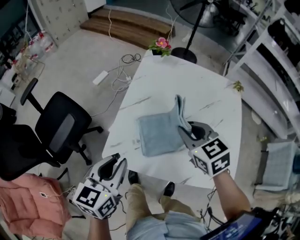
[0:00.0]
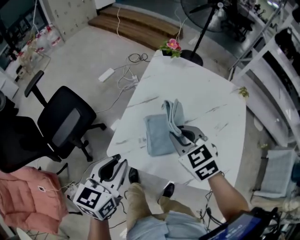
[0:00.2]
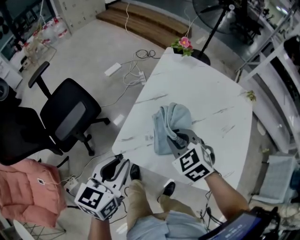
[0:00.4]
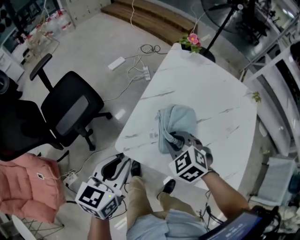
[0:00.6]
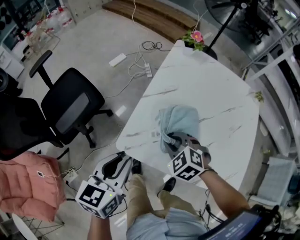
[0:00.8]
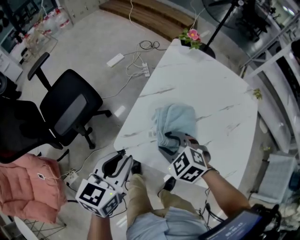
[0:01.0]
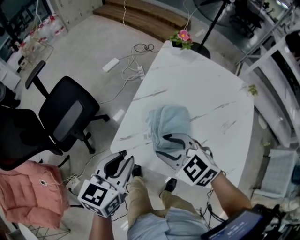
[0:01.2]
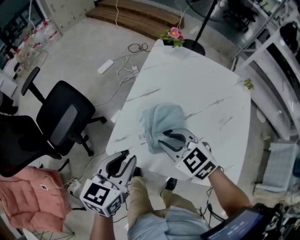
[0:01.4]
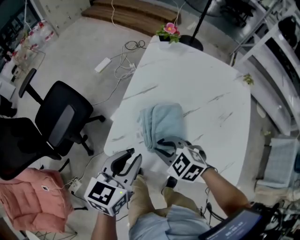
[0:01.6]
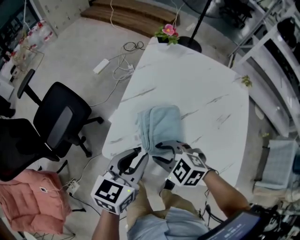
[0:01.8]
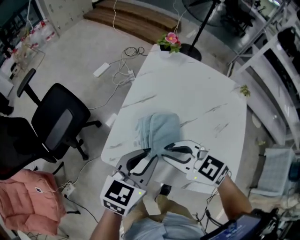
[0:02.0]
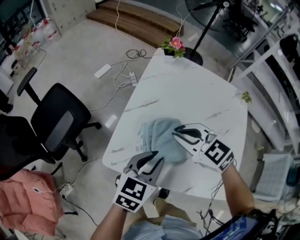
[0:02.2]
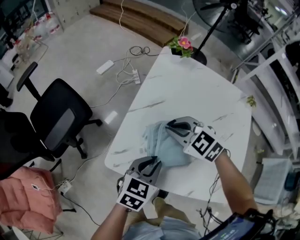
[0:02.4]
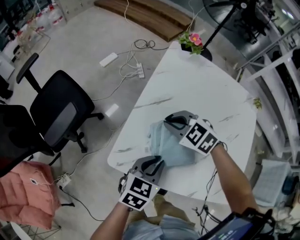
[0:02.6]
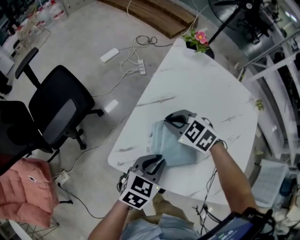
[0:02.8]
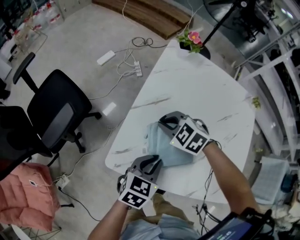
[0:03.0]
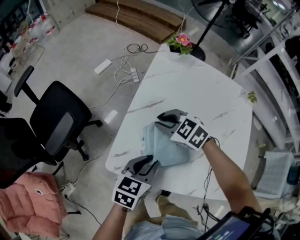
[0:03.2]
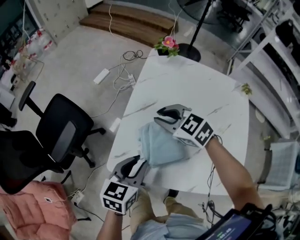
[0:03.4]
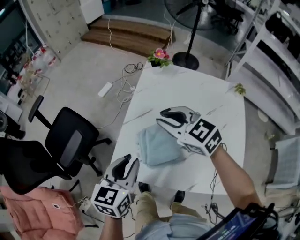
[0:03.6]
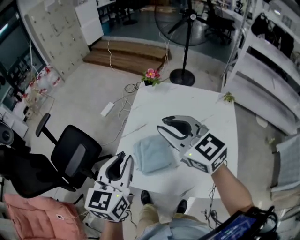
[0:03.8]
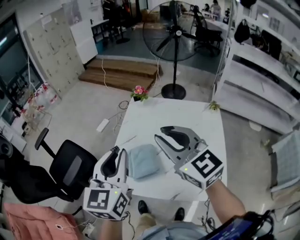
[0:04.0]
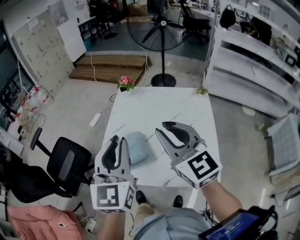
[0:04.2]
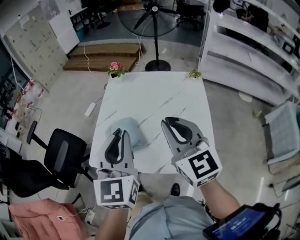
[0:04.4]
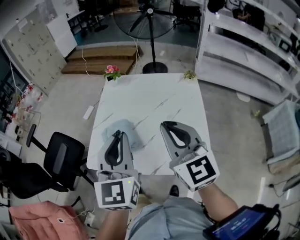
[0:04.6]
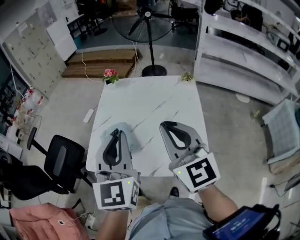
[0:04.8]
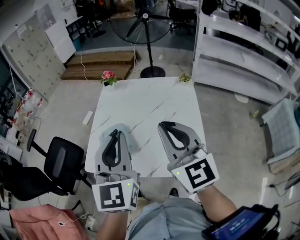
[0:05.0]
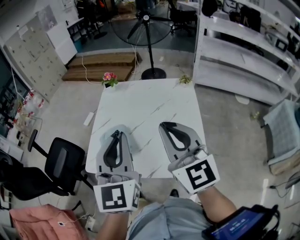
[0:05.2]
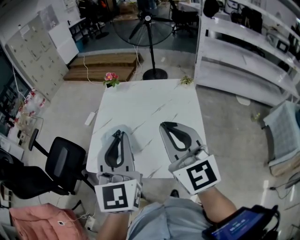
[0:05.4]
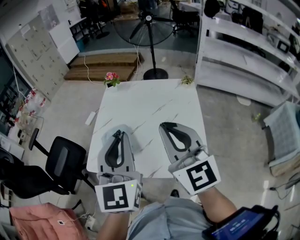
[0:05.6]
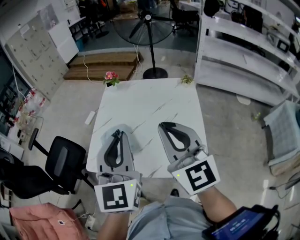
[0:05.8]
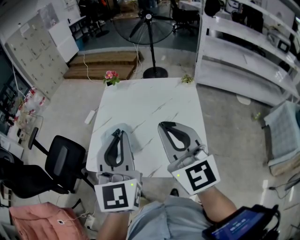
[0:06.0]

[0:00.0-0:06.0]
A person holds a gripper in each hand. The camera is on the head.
0:00.0 to 0:01.6: The left gripper moves about 5 cm to the left and comes back. Meanwhile the right gripper is displaced downward, to the left and backward by approximately 20 cm, swivels about 30 degrees, and opens, then closes again.
0:01.6 to 0:03.0: The left gripper heads downward and to the right, covering some 15 cm. Meanwhile the right gripper moves forward, approximately 15 cm.
0:03.0 to 0:04.4: The right gripper moves upward, to the right and backward, some 40 cm, and points its fingers approximately 50 degrees further upward. Meanwhile the left gripper goes approximately 30 cm upward, and tips its fingers upward by about 30 degrees.
0:04.4 to 0:06.0: The right gripper shifts by some 5 cm. The left gripper changes place by approximately 5 cm.

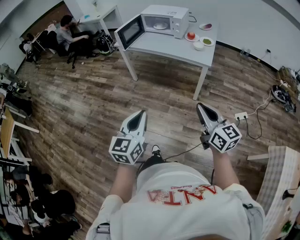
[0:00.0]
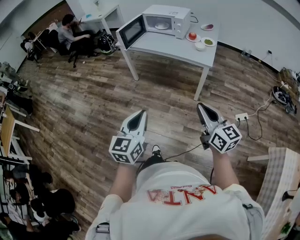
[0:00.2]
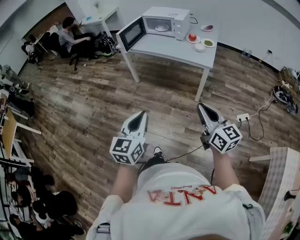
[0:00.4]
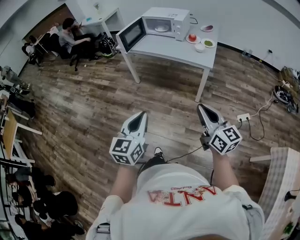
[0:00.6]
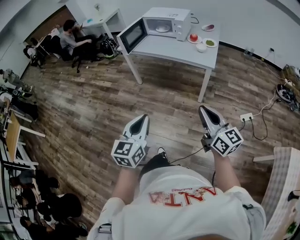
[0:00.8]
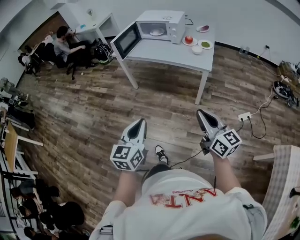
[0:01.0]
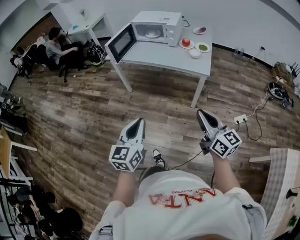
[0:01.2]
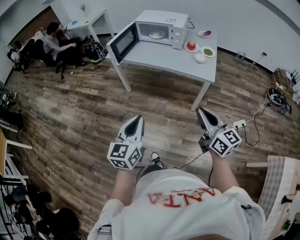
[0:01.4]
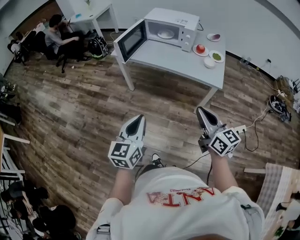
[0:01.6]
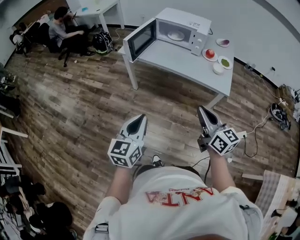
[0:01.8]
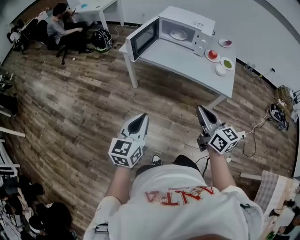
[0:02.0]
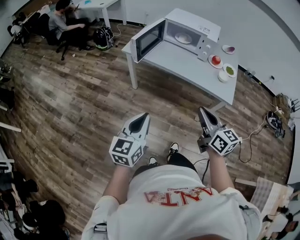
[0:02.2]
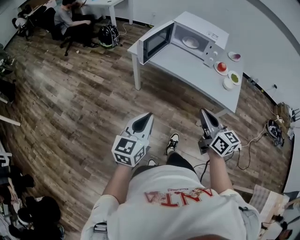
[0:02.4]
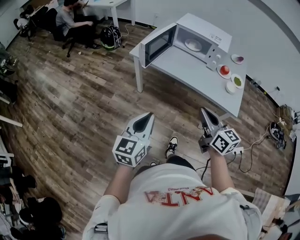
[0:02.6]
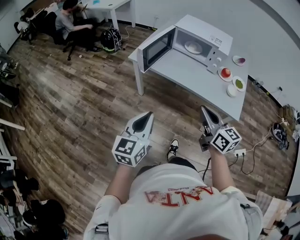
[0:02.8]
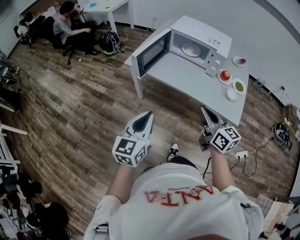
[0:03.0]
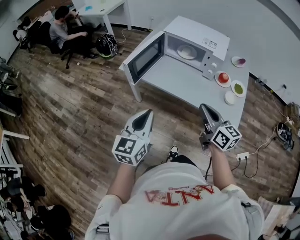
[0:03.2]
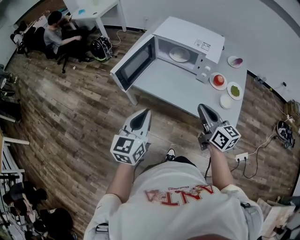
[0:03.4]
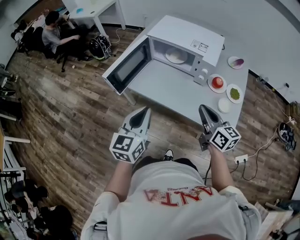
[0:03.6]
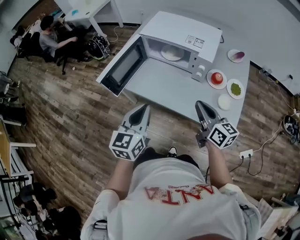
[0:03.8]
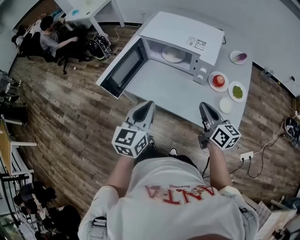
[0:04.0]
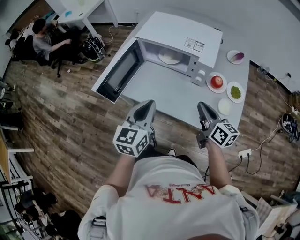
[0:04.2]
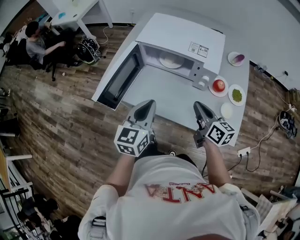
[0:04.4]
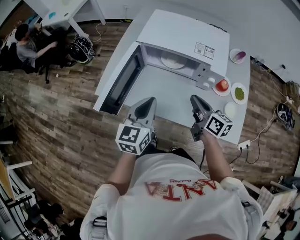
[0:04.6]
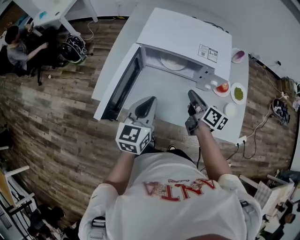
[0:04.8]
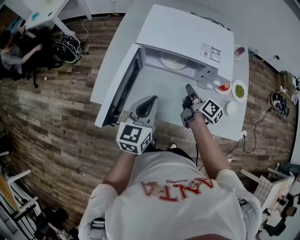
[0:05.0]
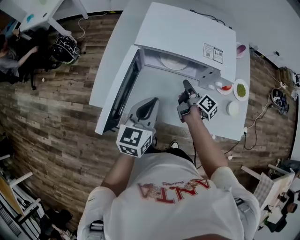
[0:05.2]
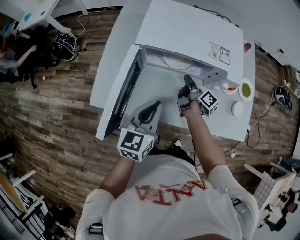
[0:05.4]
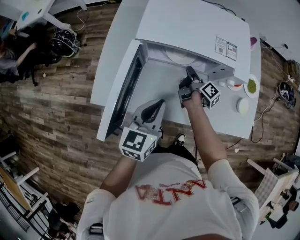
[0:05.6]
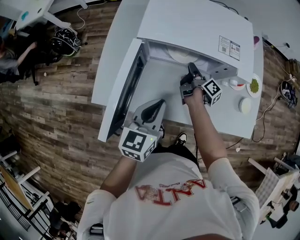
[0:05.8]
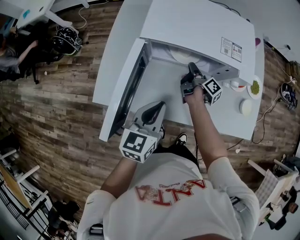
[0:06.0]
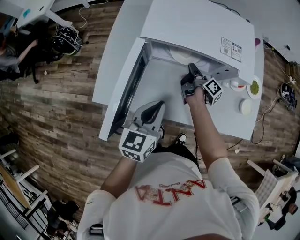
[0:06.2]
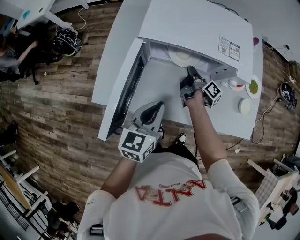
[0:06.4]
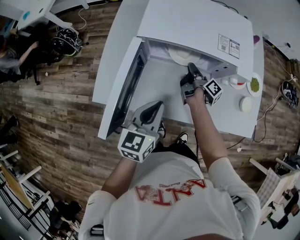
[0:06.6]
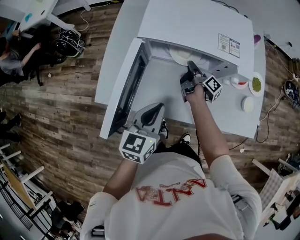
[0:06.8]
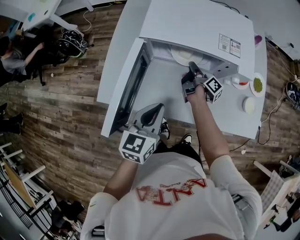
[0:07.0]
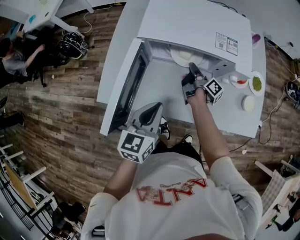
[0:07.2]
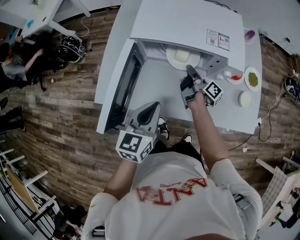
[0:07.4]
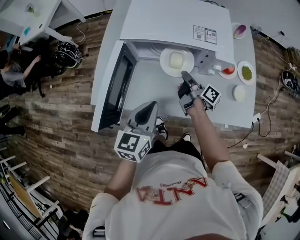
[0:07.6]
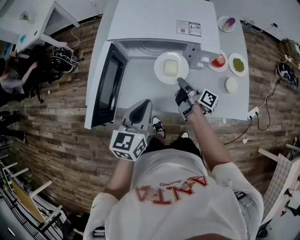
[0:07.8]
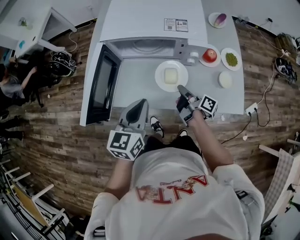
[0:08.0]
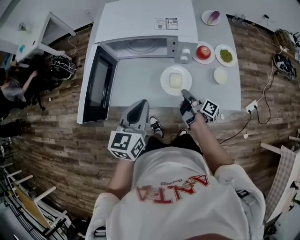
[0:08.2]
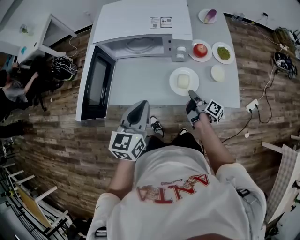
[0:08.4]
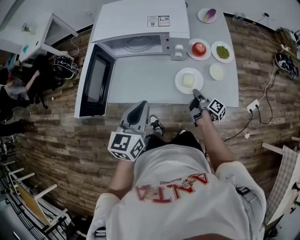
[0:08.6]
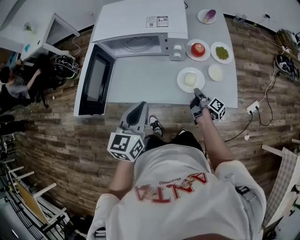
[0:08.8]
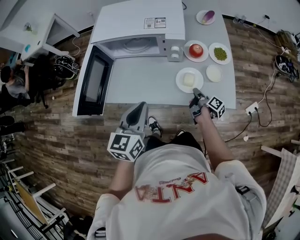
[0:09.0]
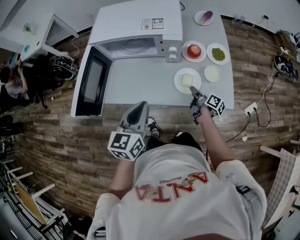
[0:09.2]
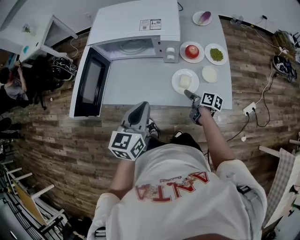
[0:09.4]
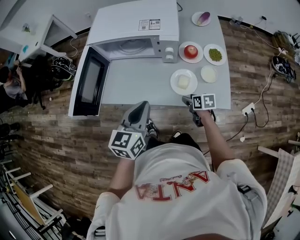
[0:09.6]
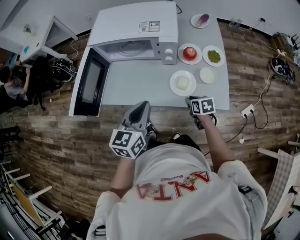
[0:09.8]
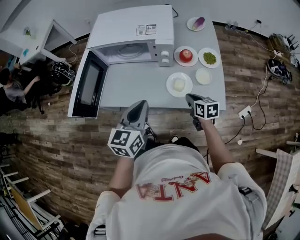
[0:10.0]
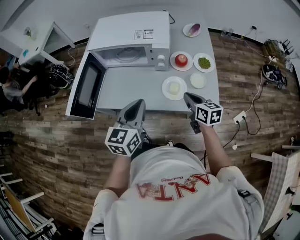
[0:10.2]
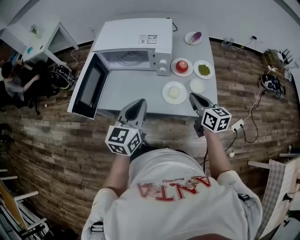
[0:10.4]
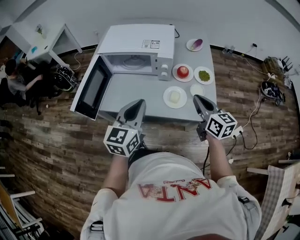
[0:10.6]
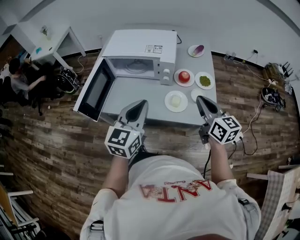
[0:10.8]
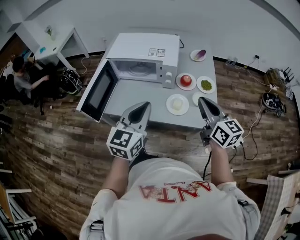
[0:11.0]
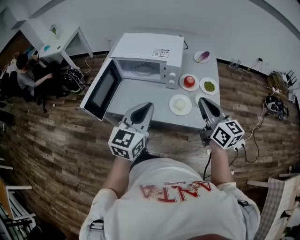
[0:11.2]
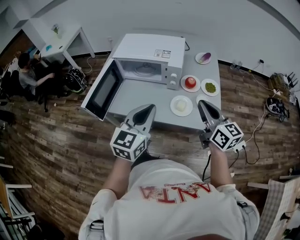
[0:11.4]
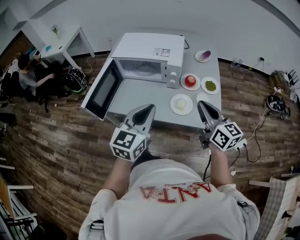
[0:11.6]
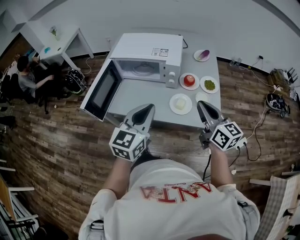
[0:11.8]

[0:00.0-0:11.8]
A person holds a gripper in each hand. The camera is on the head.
0:00.0 to 0:01.4: The two grippers go some 15 cm forward.
0:01.4 to 0:03.0: The two grippers go roughly 30 cm forward.
0:03.0 to 0:04.4: The two grippers go about 30 cm forward and to the right.
0:04.4 to 0:06.0: The left gripper shifts some 15 cm forward, downward and to the left. The right gripper goes some 30 cm forward, downward and to the left, and twists approximately 50 degrees clockwise, seen from behind.
0:06.0 to 0:07.4: The right gripper changes place by some 5 cm.
0:07.4 to 0:08.8: The right gripper shifts roughly 30 cm to the right and backward, while the left gripper is displaced to the right and backward by approximately 15 cm.
0:08.8 to 0:10.4: The right gripper shifts about 25 cm upward, rolls counterclockwise, seen from behind, by roughly 70 degrees, and opens, then closes again. Meanwhile the left gripper travels to the right by about 5 cm.
0:10.4 to 0:11.8: The right gripper shifts about 15 cm upward and backward. Meanwhile the left gripper travels upward by roughly 5 cm.

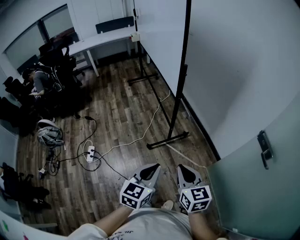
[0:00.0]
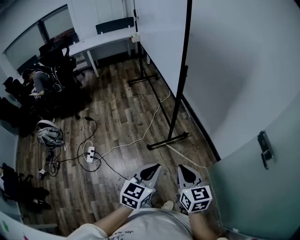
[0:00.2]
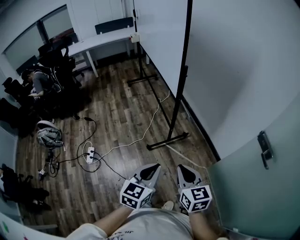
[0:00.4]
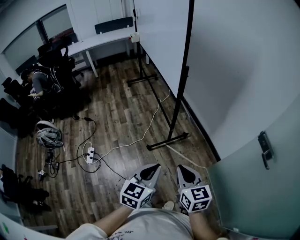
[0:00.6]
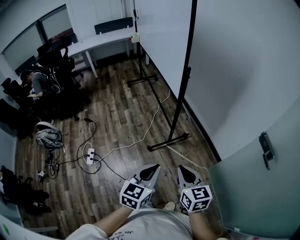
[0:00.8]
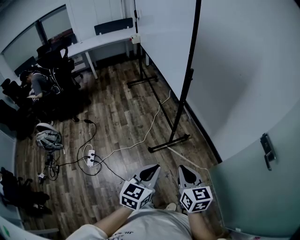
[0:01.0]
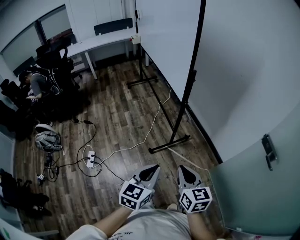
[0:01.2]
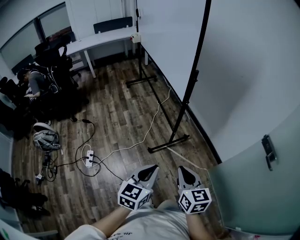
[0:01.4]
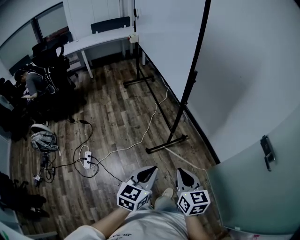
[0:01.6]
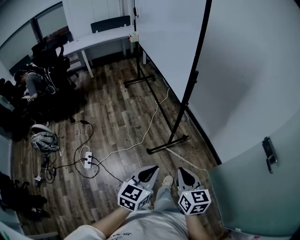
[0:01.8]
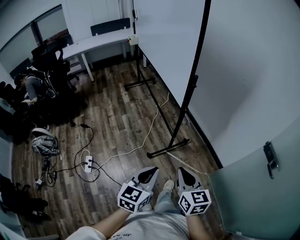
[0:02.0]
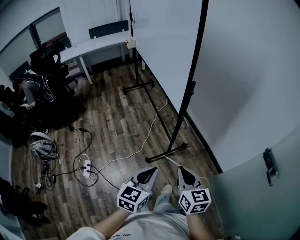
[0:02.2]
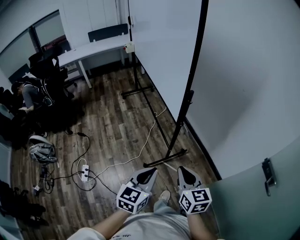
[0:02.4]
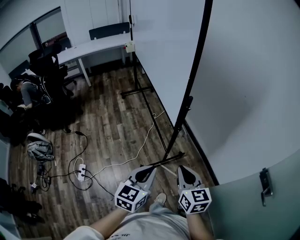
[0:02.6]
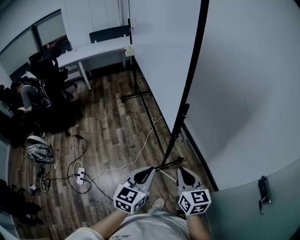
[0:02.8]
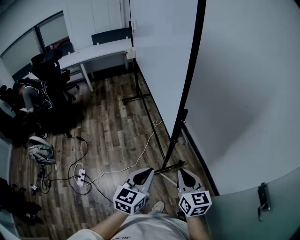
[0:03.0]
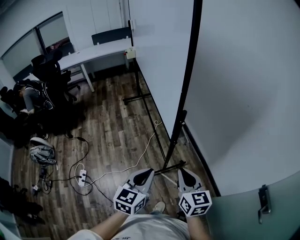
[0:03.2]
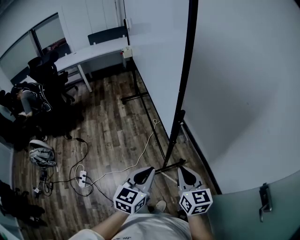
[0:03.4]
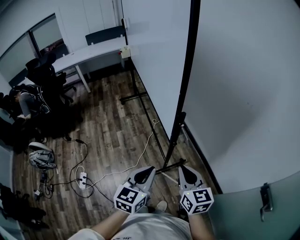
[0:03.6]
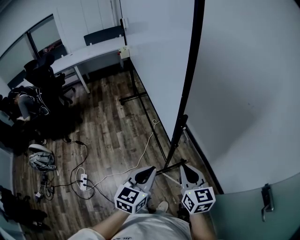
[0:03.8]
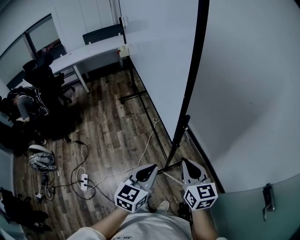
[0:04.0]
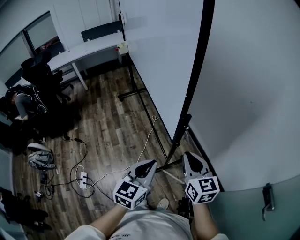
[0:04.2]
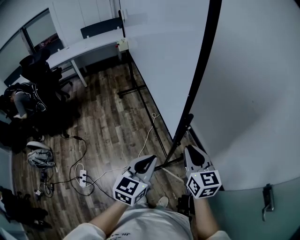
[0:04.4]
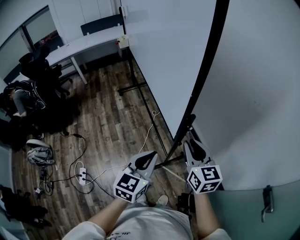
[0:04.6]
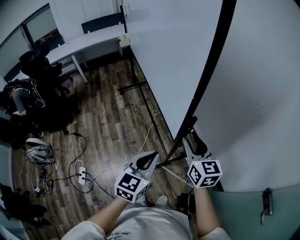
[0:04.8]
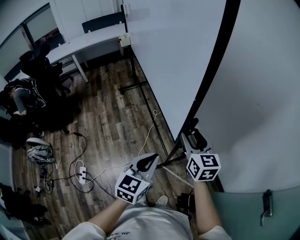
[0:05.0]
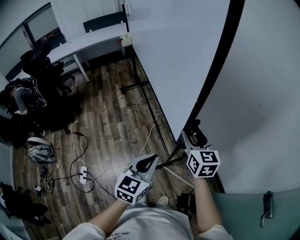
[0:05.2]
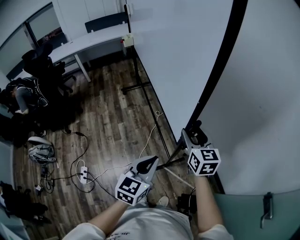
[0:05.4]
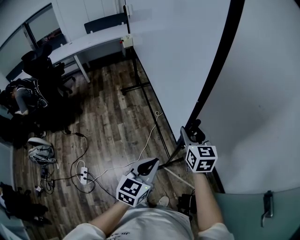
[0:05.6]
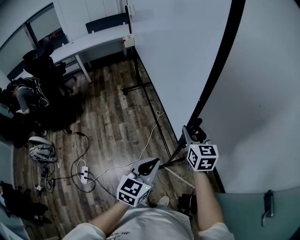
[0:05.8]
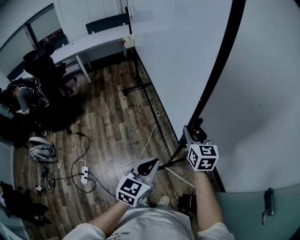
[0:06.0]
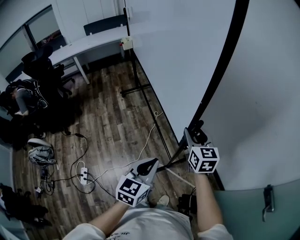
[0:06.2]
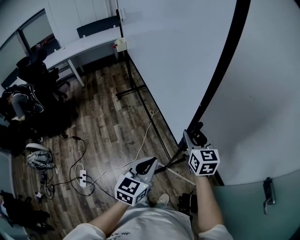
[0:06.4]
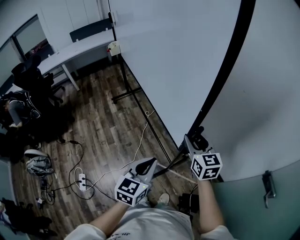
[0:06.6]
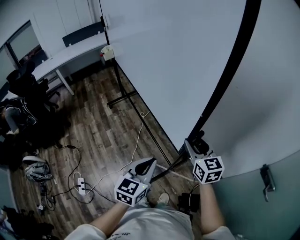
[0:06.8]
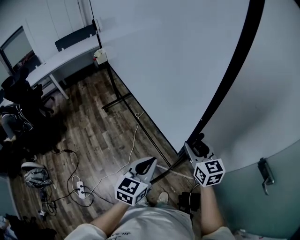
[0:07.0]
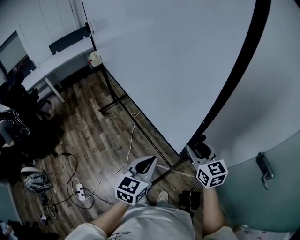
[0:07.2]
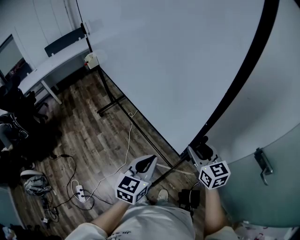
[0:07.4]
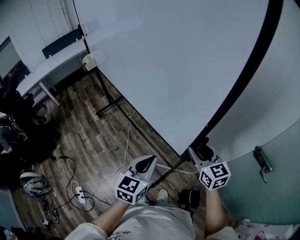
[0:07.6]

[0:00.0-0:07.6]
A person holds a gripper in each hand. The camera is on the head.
0:00.0 to 0:01.6: Both grippers move to the left, about 10 cm.
0:01.6 to 0:03.0: The grippers both shift forward by roughly 25 cm.
0:03.0 to 0:04.6: Both grippers move forward, about 15 cm.
0:04.6 to 0:06.0: The right gripper moves forward, approximately 10 cm, and opens its fingers.
0:06.0 to 0:07.6: The right gripper goes approximately 25 cm to the right and backward, while the left gripper travels to the right by roughly 10 cm.
